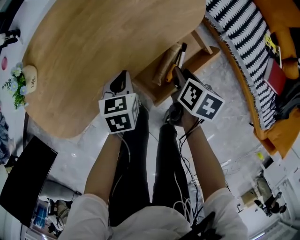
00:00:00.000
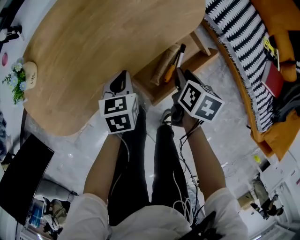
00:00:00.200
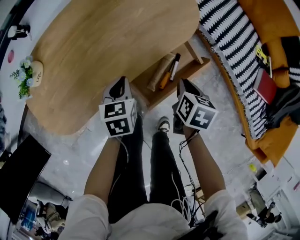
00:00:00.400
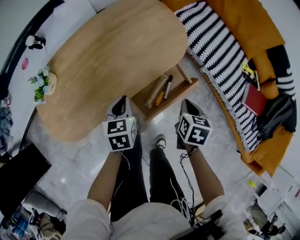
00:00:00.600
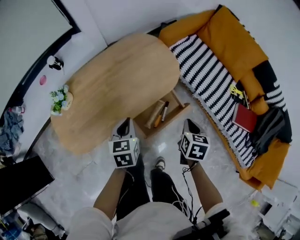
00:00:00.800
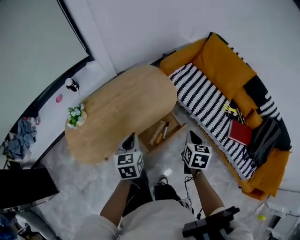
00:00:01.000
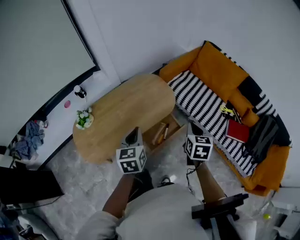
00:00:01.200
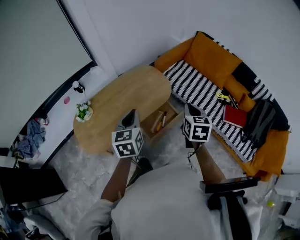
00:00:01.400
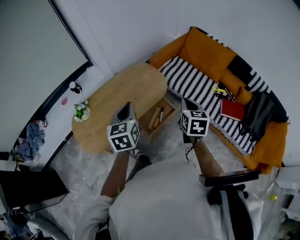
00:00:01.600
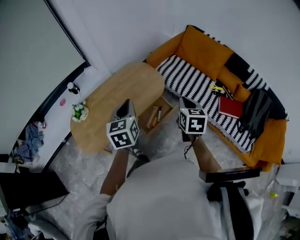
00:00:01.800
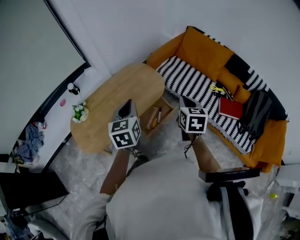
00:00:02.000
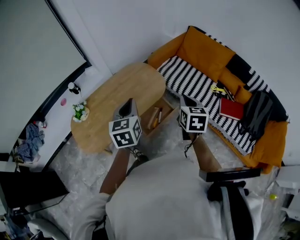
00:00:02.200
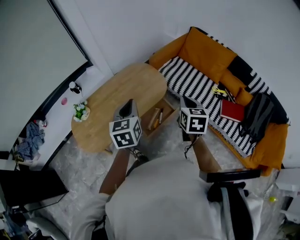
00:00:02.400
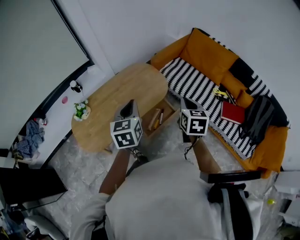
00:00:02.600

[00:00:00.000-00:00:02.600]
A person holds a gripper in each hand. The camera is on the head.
00:00:00.000 to 00:00:01.200: The grippers both shift upward by some 40 cm. The left gripper changes its angle by about 30 degrees. The right gripper changes its angle by about 40 degrees, and closes.
00:00:01.200 to 00:00:02.600: The right gripper changes place by roughly 5 cm. Meanwhile the left gripper moves upward, approximately 5 cm.

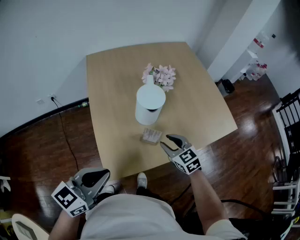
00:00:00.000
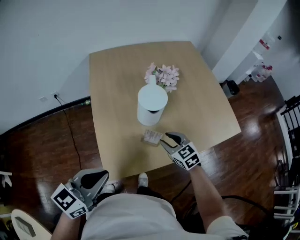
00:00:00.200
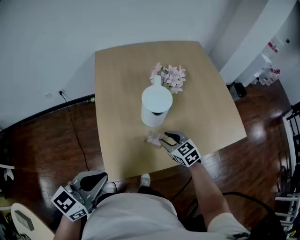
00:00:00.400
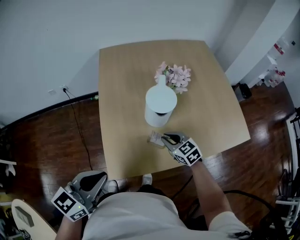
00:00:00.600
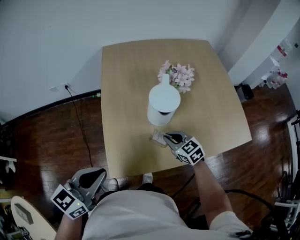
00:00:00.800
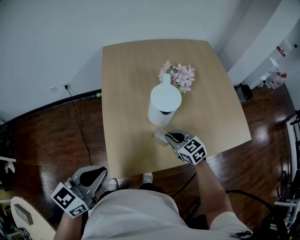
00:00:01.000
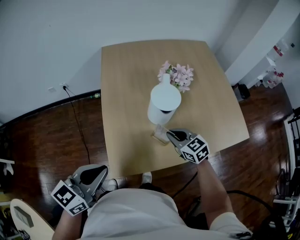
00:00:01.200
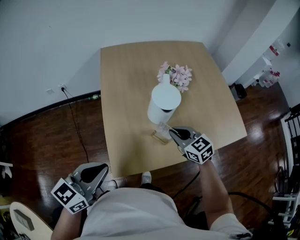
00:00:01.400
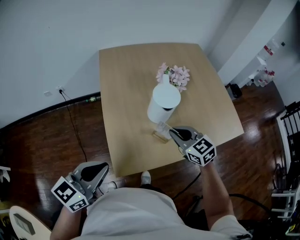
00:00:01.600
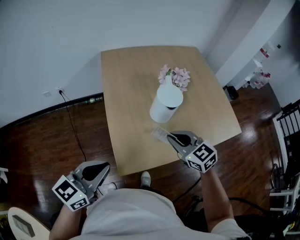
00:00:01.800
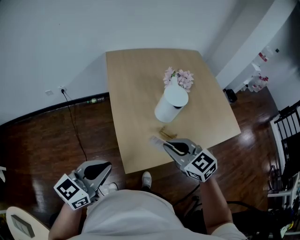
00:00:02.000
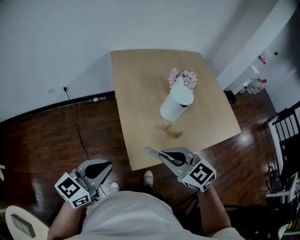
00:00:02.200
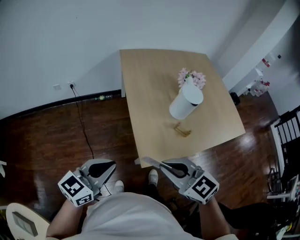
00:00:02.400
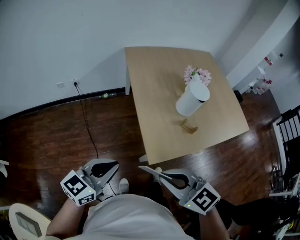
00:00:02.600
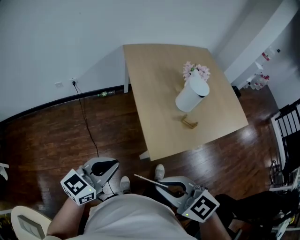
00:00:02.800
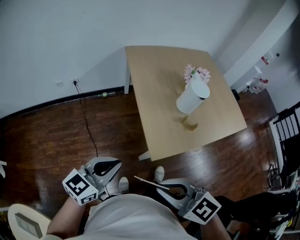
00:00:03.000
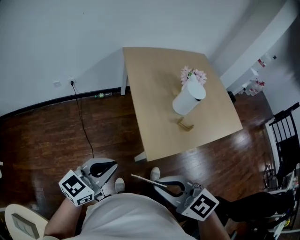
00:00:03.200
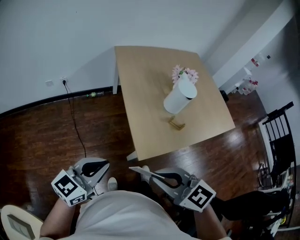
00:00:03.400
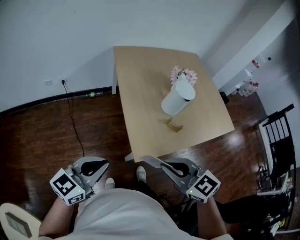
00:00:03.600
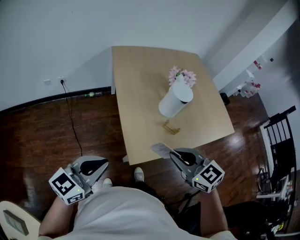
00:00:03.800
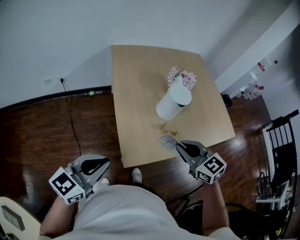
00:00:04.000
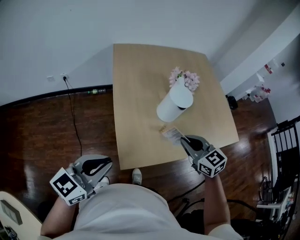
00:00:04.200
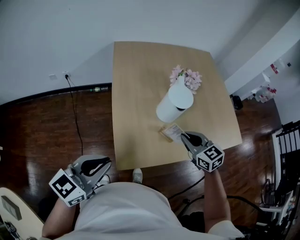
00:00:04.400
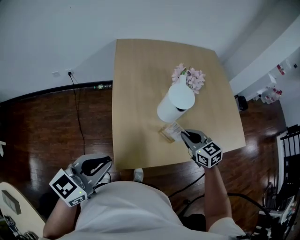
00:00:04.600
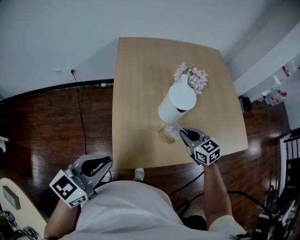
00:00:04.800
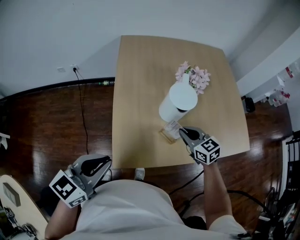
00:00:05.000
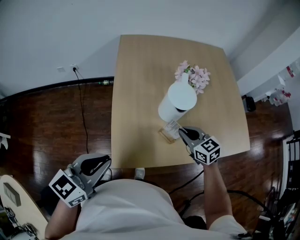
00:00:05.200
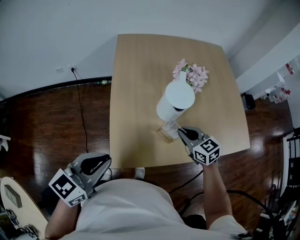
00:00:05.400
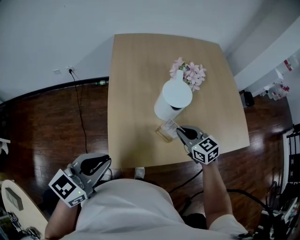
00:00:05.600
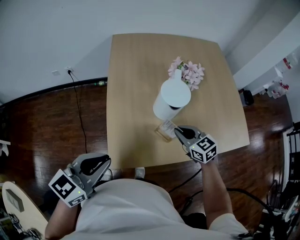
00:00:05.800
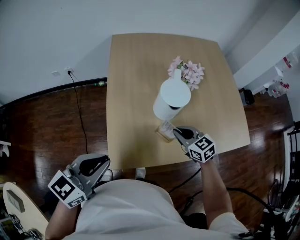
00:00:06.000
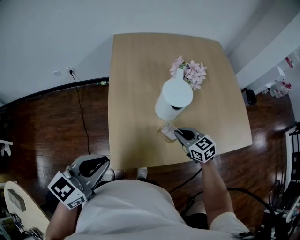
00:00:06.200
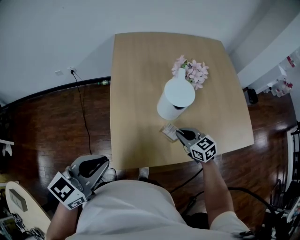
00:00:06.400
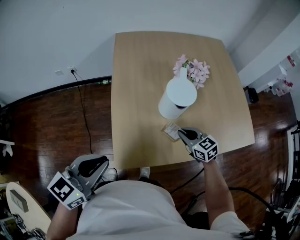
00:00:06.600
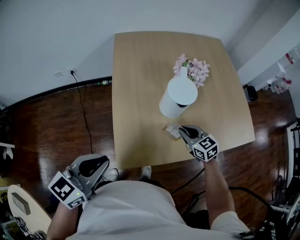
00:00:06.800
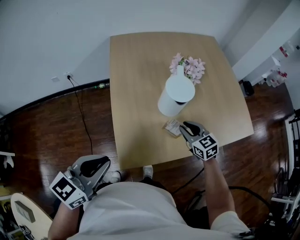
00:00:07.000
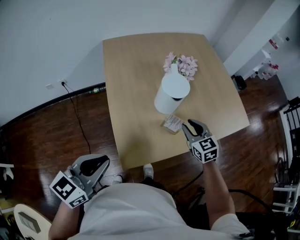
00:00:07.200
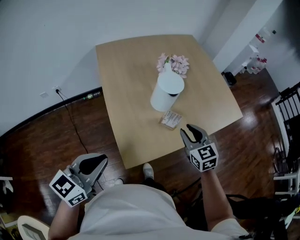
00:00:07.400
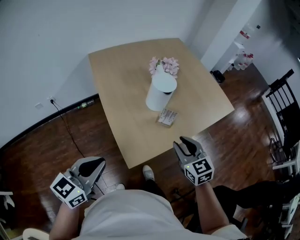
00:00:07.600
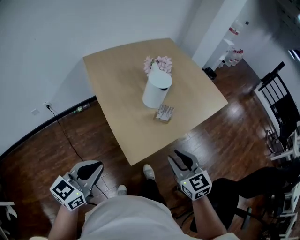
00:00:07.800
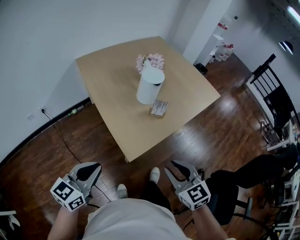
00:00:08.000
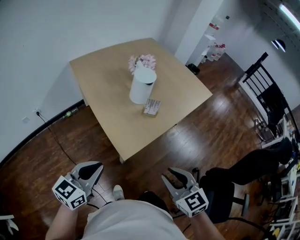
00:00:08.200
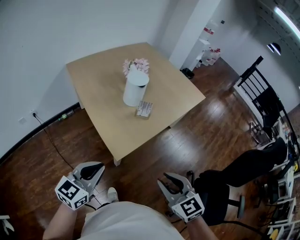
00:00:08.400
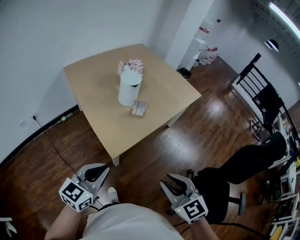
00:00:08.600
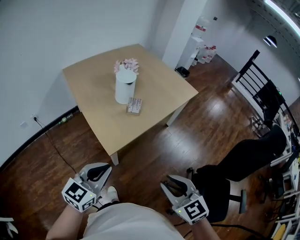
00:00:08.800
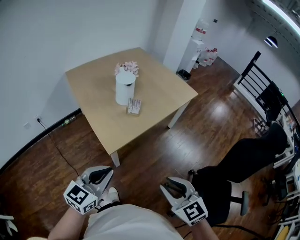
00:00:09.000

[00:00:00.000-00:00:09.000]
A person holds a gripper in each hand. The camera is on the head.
00:00:00.000 to 00:00:01.600: The right gripper heads upward, covering about 5 cm, and closes.
00:00:01.600 to 00:00:03.000: The left gripper heads to the left and backward, covering about 20 cm. The right gripper goes some 40 cm to the left and backward.
00:00:03.000 to 00:00:04.400: The right gripper shifts roughly 40 cm to the right and forward. The left gripper goes roughly 15 cm to the right and forward.
00:00:04.400 to 00:00:06.000: The right gripper travels downward by some 10 cm; the left gripper goes about 5 cm to the right.
00:00:06.000 to 00:00:07.600: The right gripper changes place by about 20 cm, rotates some 40 degrees, and opens. Meanwhile the left gripper ends up roughly 15 cm from where it was.
00:00:07.600 to 00:00:09.000: The left gripper shifts about 20 cm to the right and backward. Meanwhile the right gripper travels backward by roughly 35 cm.

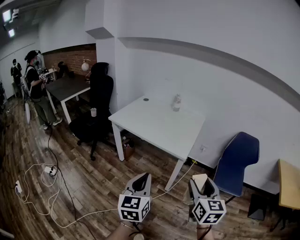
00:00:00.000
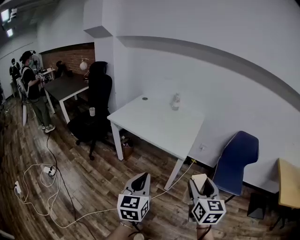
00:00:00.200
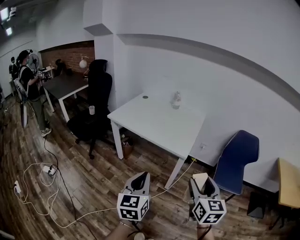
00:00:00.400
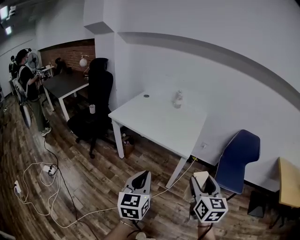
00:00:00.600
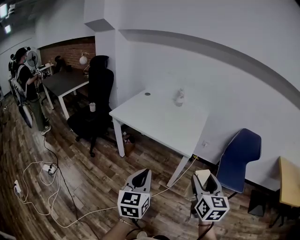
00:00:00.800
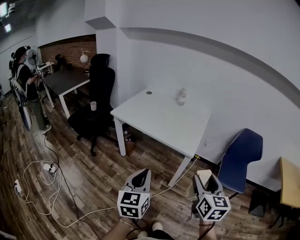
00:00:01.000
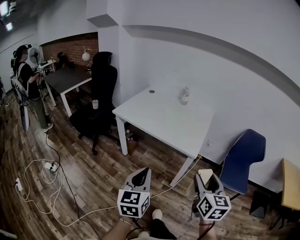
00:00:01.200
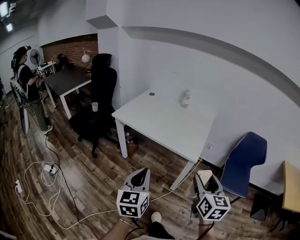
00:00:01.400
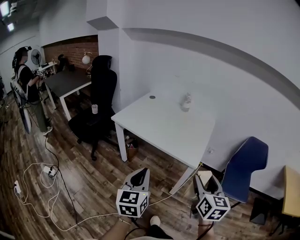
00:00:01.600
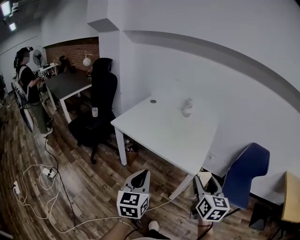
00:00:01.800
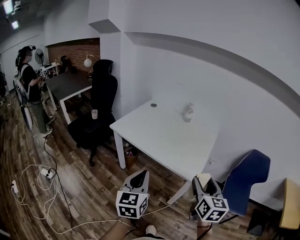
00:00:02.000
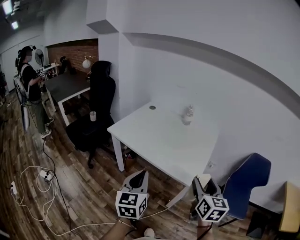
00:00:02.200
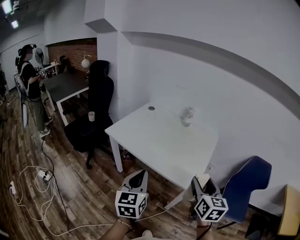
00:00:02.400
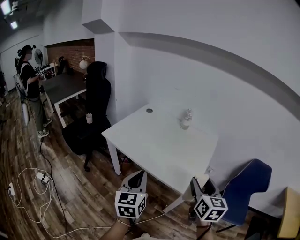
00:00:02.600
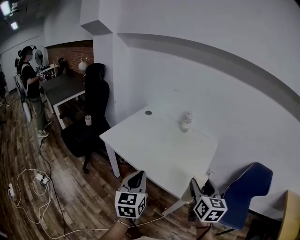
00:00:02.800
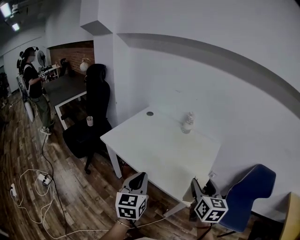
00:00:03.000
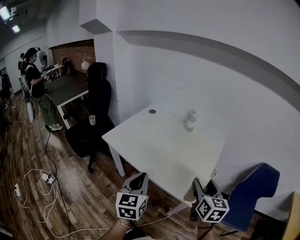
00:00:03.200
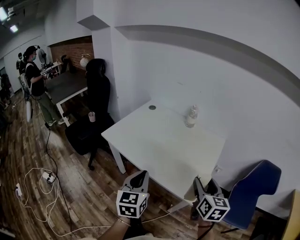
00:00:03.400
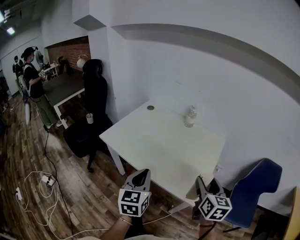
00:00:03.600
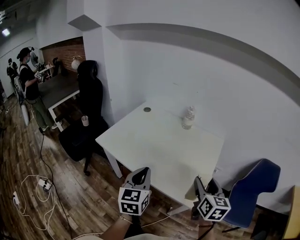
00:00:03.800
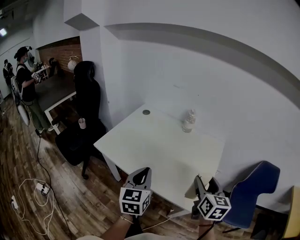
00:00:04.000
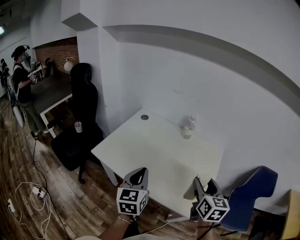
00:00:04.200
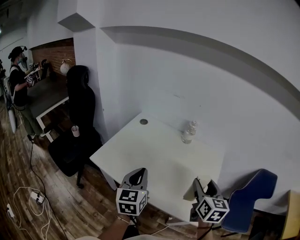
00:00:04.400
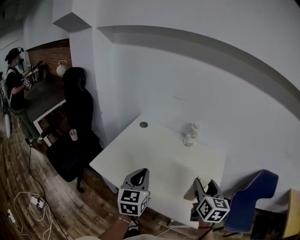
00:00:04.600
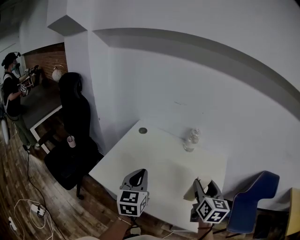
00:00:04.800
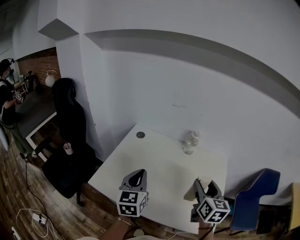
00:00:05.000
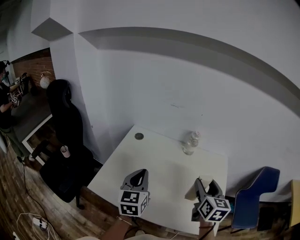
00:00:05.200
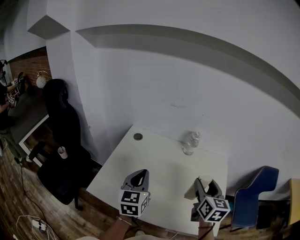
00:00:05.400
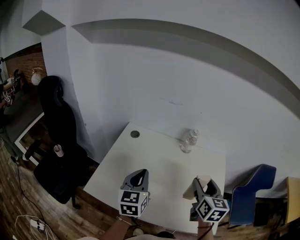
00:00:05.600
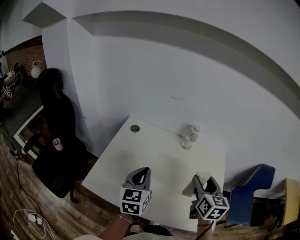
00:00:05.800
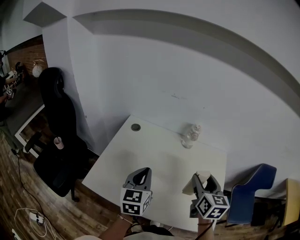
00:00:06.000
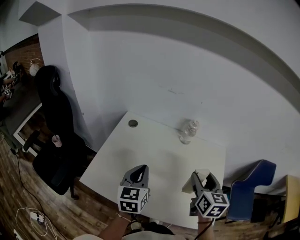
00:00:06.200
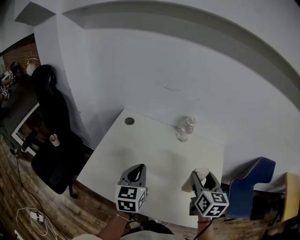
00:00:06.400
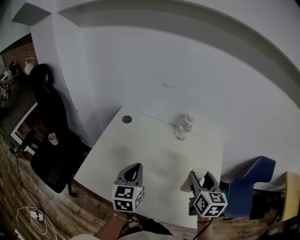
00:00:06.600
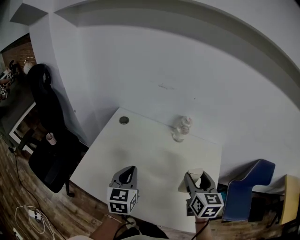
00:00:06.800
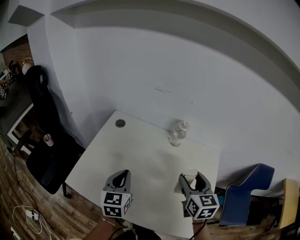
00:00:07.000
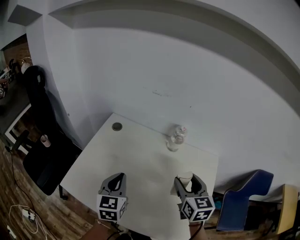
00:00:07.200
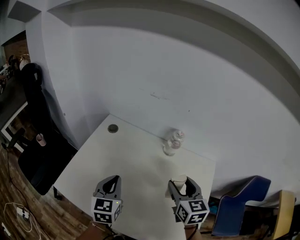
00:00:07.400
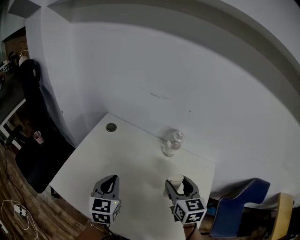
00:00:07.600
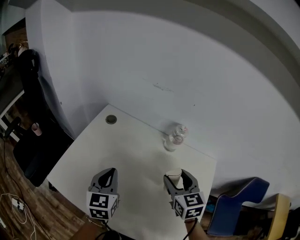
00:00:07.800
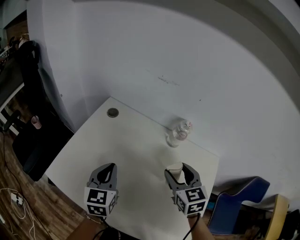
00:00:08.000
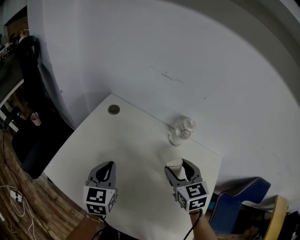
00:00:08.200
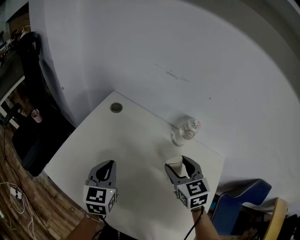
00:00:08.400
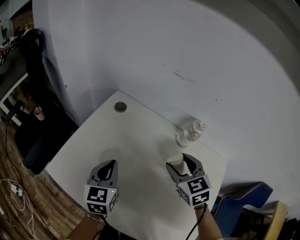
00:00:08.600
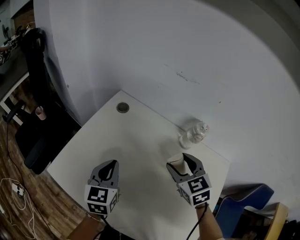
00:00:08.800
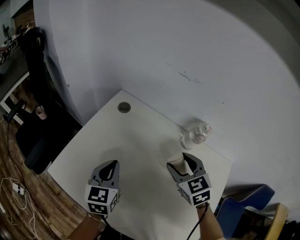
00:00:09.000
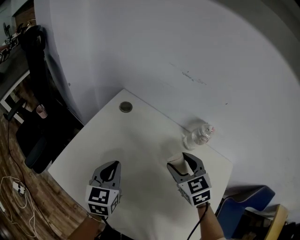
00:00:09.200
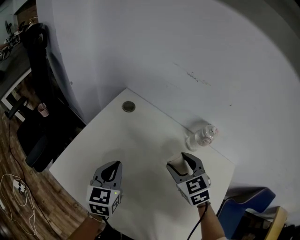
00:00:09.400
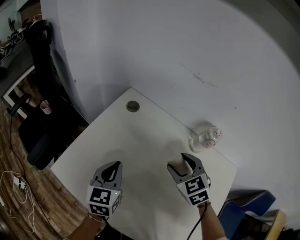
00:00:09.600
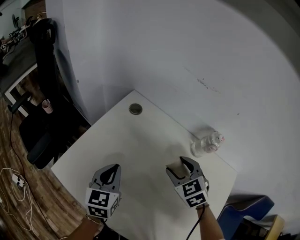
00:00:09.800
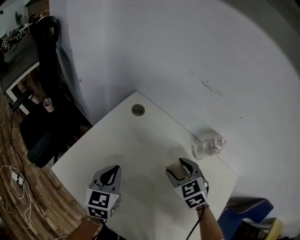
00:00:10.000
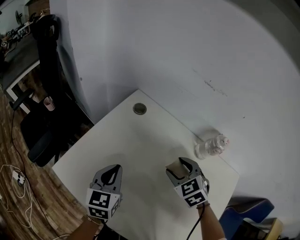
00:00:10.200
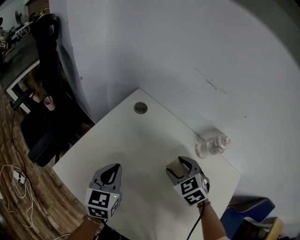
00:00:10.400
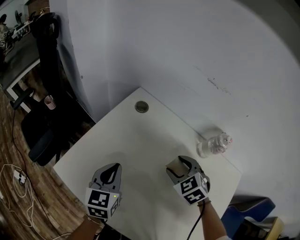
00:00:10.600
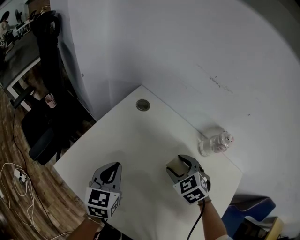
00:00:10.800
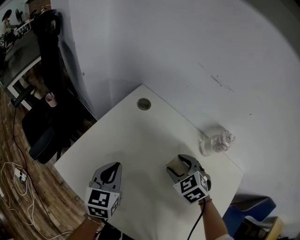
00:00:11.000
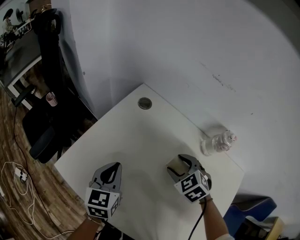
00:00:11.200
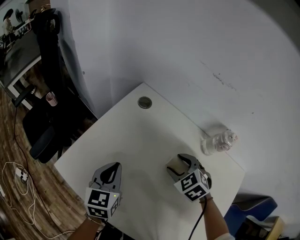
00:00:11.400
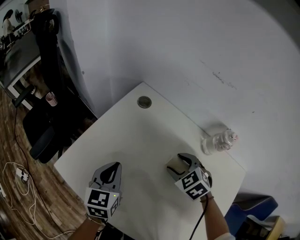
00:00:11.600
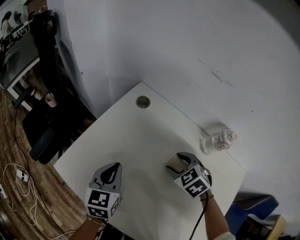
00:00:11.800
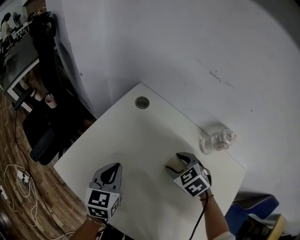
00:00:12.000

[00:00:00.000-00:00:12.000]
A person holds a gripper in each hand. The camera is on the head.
00:00:00.000 to 00:00:01.600: The left gripper heads forward and to the left, covering some 15 cm; the right gripper goes about 10 cm forward.
00:00:01.600 to 00:00:03.000: The grippers both shift forward by some 20 cm.
00:00:03.000 to 00:00:04.400: Both grippers travel together forward, some 15 cm.
00:00:04.400 to 00:00:06.000: The left gripper shifts approximately 15 cm forward. Meanwhile the right gripper is displaced forward and to the left by approximately 10 cm.
00:00:06.000 to 00:00:07.600: The right gripper goes roughly 10 cm forward and downward, and changes its angle by some 20 degrees, while the left gripper travels downward by approximately 5 cm.
00:00:07.600 to 00:00:09.000: The left gripper moves approximately 5 cm, while the right gripper is displaced forward and to the left by about 10 cm, and swivels about 30 degrees.
00:00:09.000 to 00:00:10.400: The right gripper is displaced downward by some 5 cm, and rotates roughly 20 degrees.
00:00:10.400 to 00:00:12.000: The grippers make only small movements.
